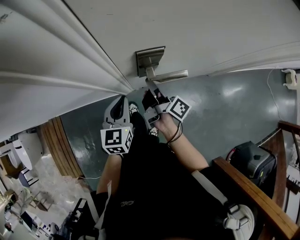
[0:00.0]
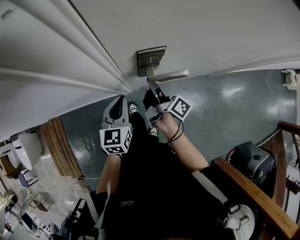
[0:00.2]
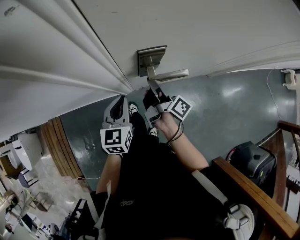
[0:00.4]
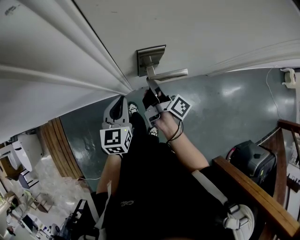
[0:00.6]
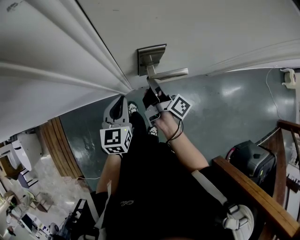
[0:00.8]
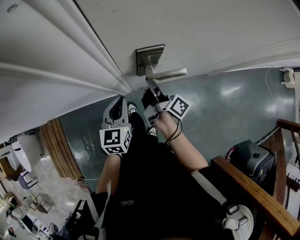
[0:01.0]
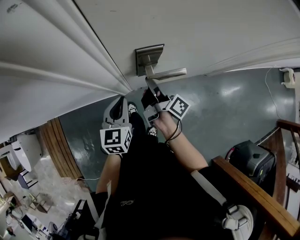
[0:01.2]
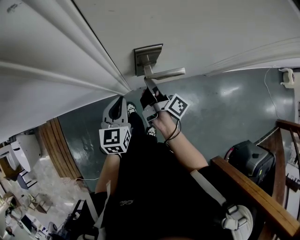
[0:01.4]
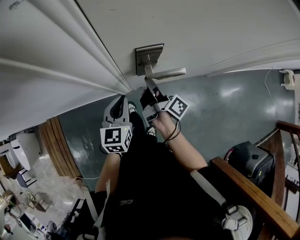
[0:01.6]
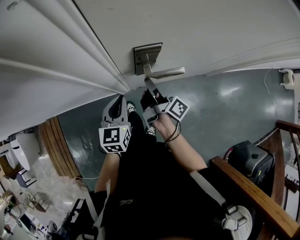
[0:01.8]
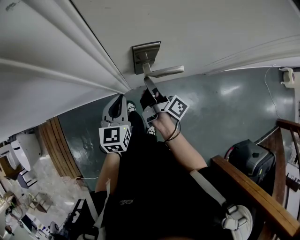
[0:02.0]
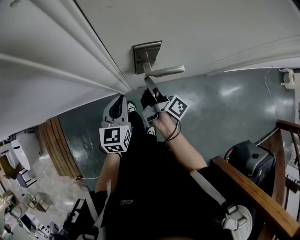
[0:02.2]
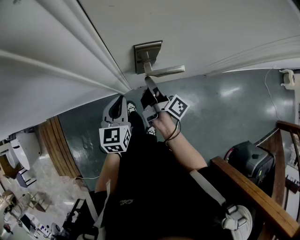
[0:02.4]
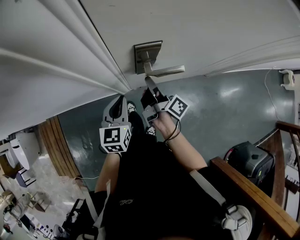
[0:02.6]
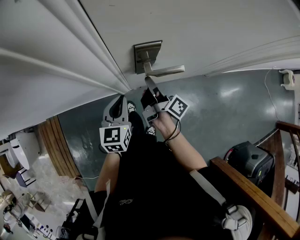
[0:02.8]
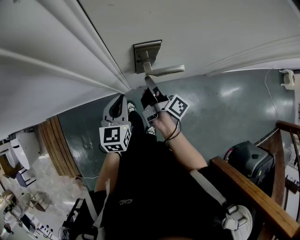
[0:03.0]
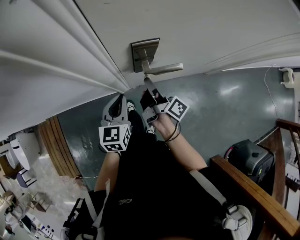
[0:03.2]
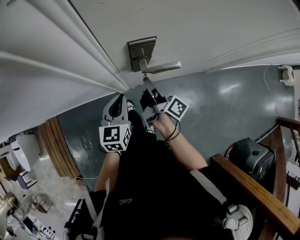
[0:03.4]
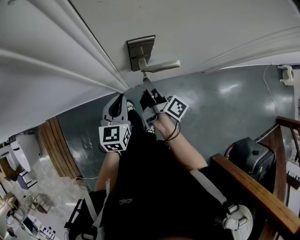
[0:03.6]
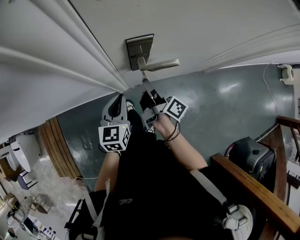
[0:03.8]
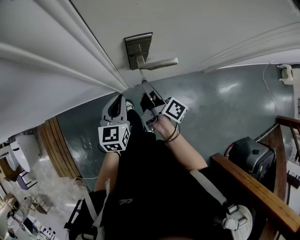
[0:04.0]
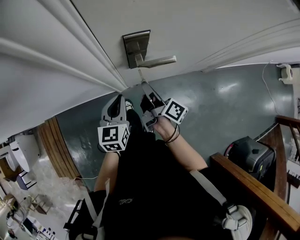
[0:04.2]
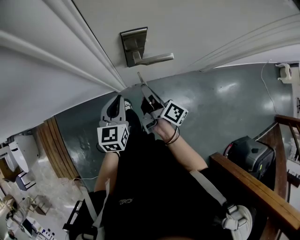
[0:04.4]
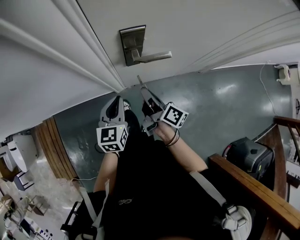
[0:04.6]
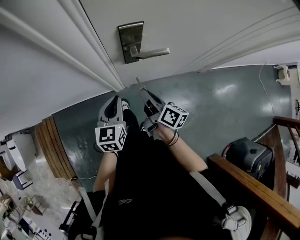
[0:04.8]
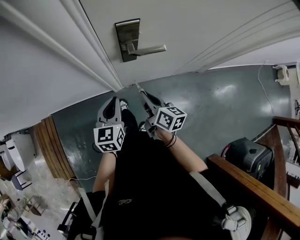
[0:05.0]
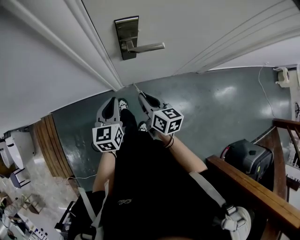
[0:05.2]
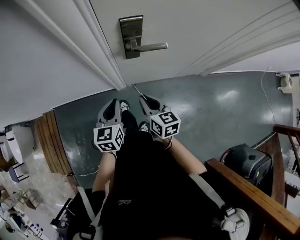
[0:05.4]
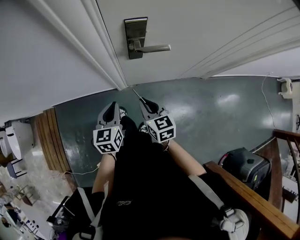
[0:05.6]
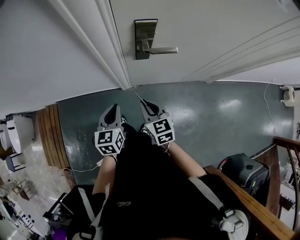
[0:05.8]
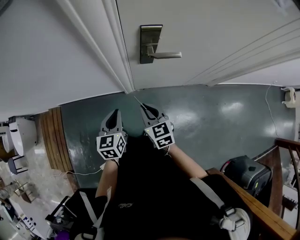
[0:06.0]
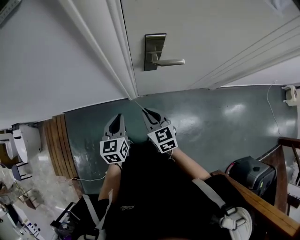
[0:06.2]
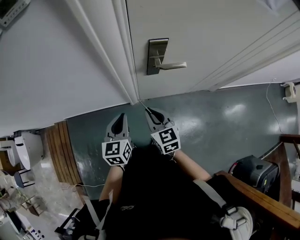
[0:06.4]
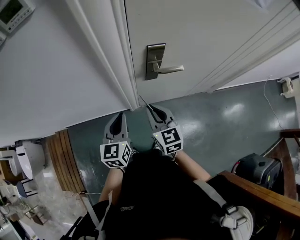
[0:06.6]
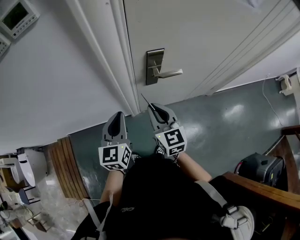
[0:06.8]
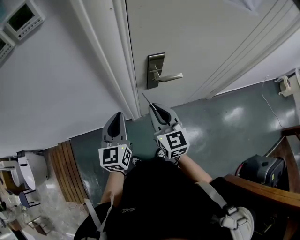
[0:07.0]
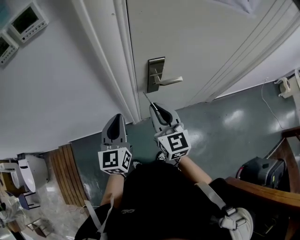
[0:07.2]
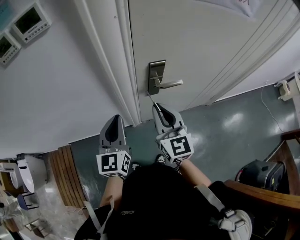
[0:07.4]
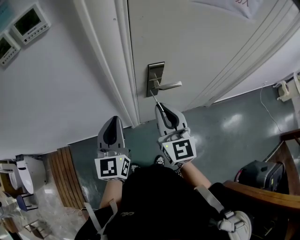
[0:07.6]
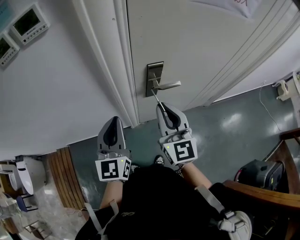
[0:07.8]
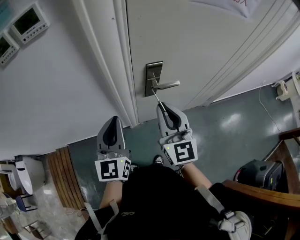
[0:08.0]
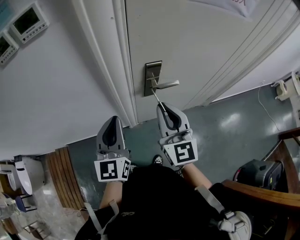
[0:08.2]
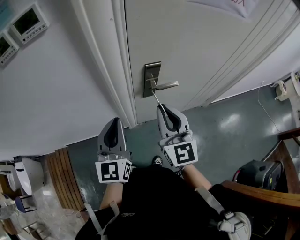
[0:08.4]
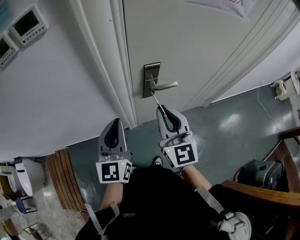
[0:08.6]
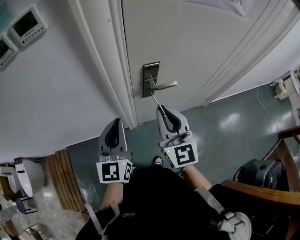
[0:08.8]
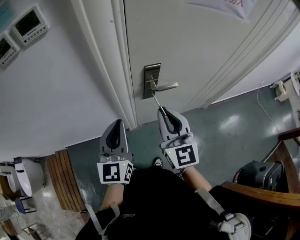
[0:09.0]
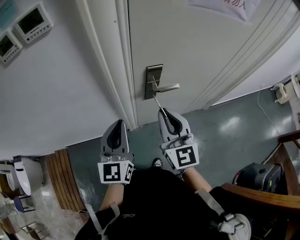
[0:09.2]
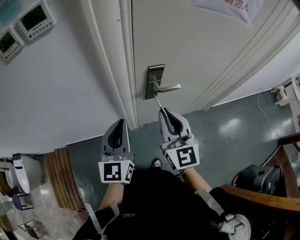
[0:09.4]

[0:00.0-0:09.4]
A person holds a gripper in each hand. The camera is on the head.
0.0 to 1.6 s: Both grippers stay about where they are.
1.6 to 3.2 s: There are only small adjustments of the grippers.
3.2 to 4.8 s: The right gripper is displaced backward by about 10 cm, and swivels roughly 30 degrees, while the left gripper travels backward by some 5 cm.
4.8 to 6.2 s: Both grippers move to the left and backward, some 10 cm. The right gripper twists about 60 degrees counterclockwise, seen from behind.
6.2 to 7.8 s: The two grippers go about 25 cm upward. The right gripper changes its angle by roughly 40 degrees, while the left gripper changes its angle by some 30 degrees.
7.8 to 9.4 s: The grippers stay close to where they were, moving slightly.

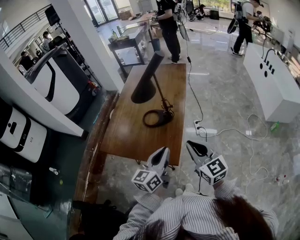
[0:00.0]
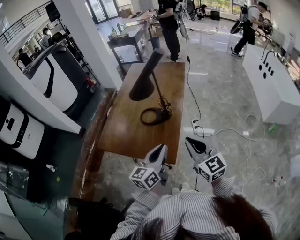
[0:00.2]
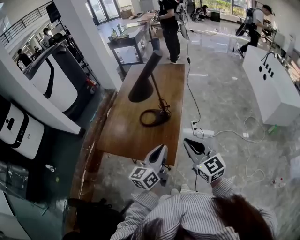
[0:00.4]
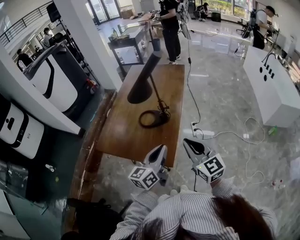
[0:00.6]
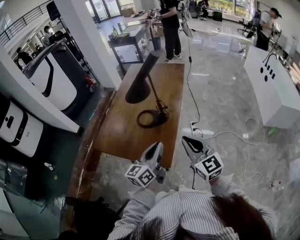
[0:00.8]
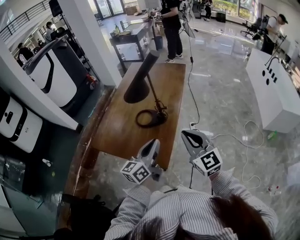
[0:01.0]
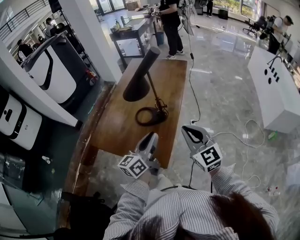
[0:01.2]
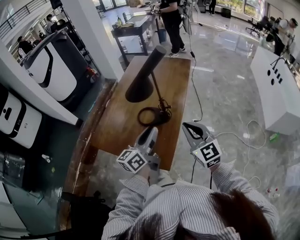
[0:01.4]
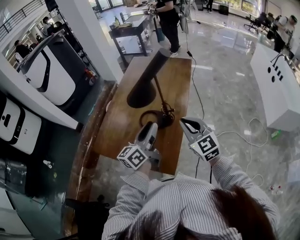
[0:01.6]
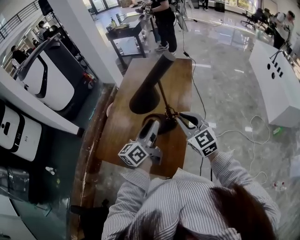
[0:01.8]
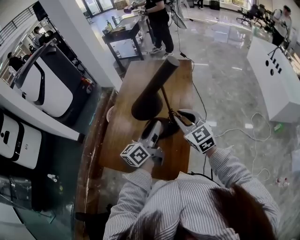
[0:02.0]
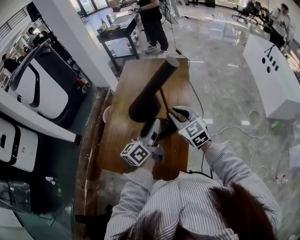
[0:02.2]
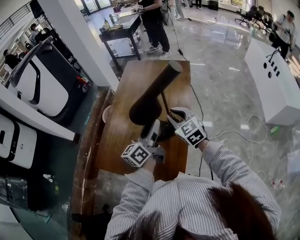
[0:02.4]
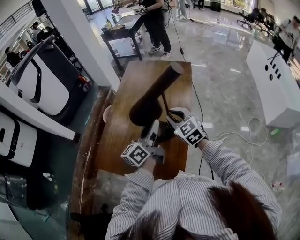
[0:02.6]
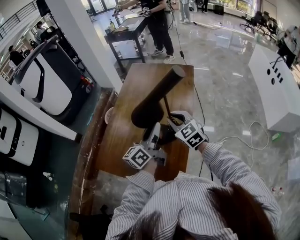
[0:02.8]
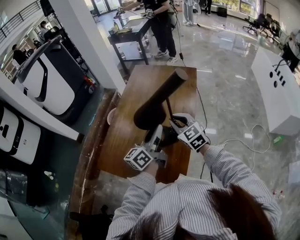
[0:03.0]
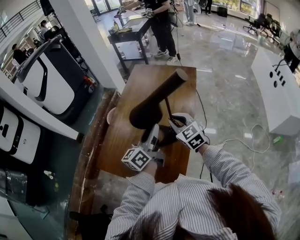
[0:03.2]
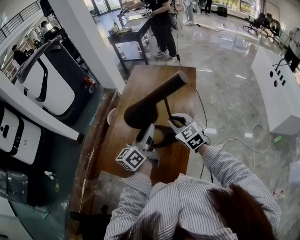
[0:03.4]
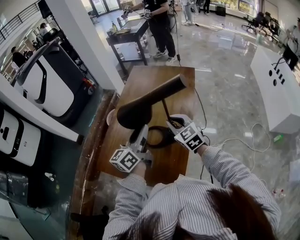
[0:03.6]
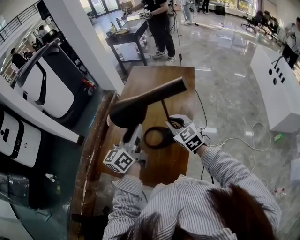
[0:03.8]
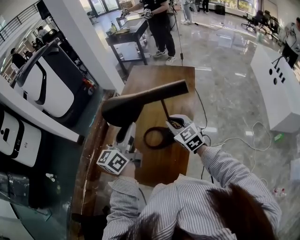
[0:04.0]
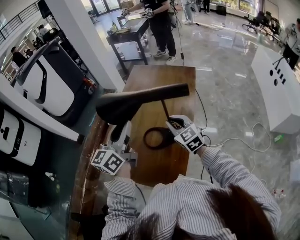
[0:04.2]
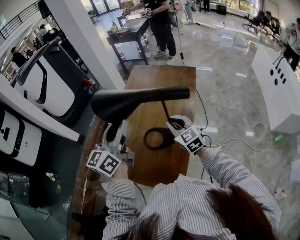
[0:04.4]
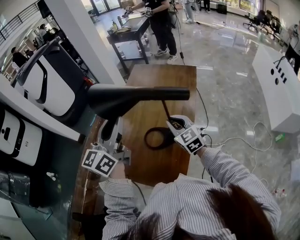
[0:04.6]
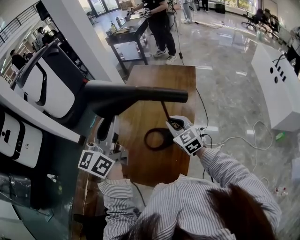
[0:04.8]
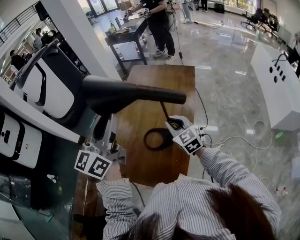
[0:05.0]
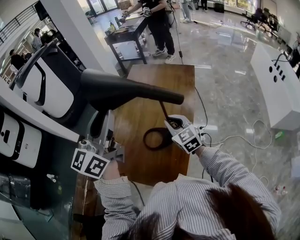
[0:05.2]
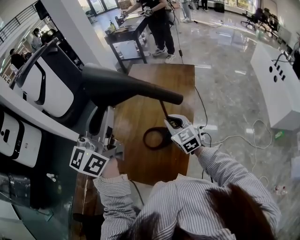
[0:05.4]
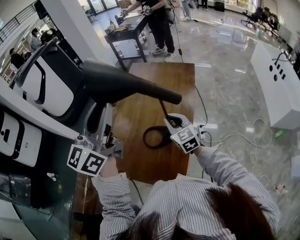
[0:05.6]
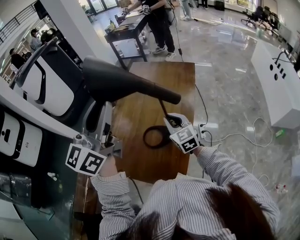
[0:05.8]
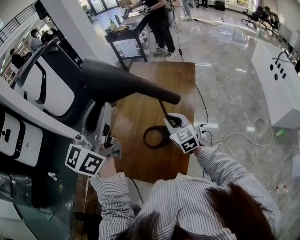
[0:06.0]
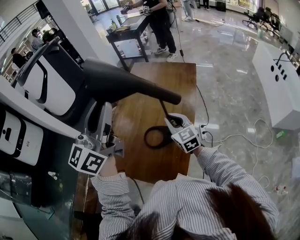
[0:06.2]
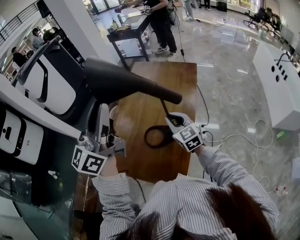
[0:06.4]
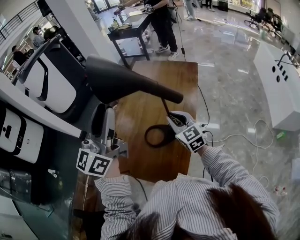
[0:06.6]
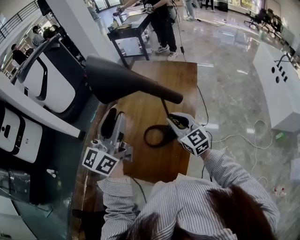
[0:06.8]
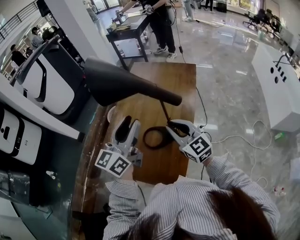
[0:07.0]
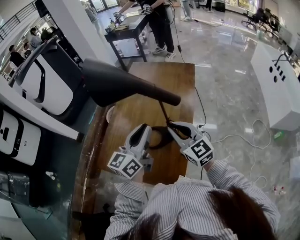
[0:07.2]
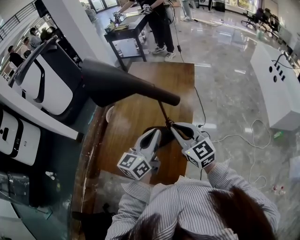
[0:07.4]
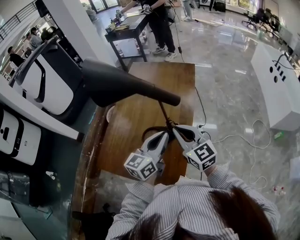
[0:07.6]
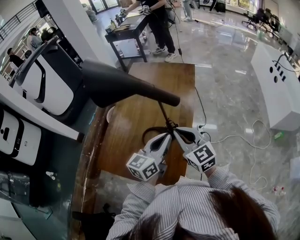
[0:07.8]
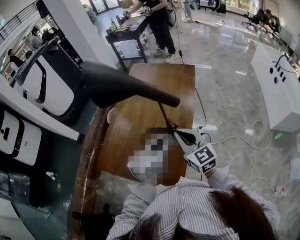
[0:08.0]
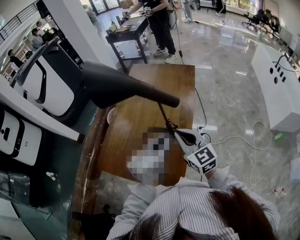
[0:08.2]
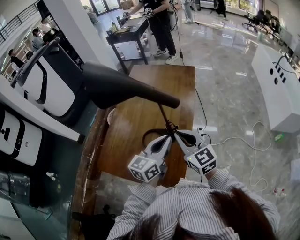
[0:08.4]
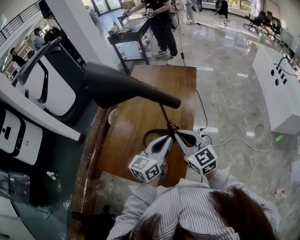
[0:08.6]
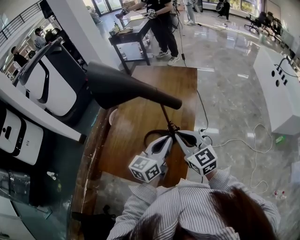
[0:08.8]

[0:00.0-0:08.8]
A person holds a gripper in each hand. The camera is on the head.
0.0 to 1.4 s: The grippers both shift forward by about 15 cm.
1.4 to 3.0 s: The right gripper is displaced forward and to the left by approximately 20 cm. The left gripper goes some 15 cm forward, and opens, then closes once more.
3.0 to 4.4 s: The left gripper moves upward and to the left, roughly 15 cm, and changes its angle by roughly 30 degrees.
4.4 to 5.8 s: The left gripper heads upward, covering some 15 cm.
5.8 to 7.4 s: The left gripper shifts about 25 cm downward and to the right, and changes its angle by about 20 degrees; the right gripper travels backward and upward by about 10 cm.
7.4 to 8.8 s: The left gripper moves about 5 cm.

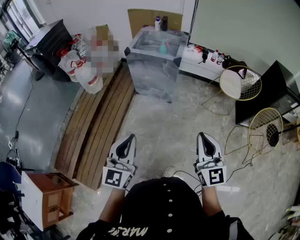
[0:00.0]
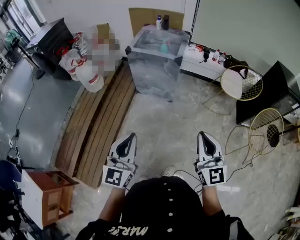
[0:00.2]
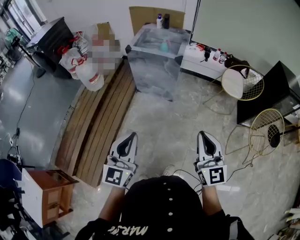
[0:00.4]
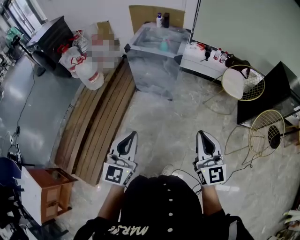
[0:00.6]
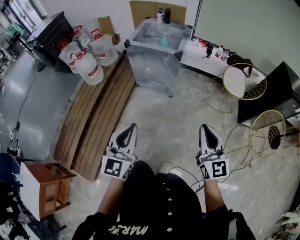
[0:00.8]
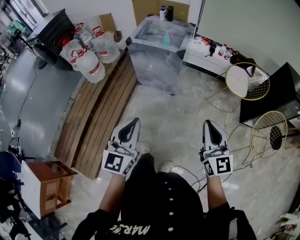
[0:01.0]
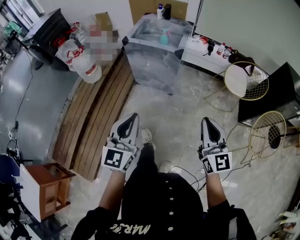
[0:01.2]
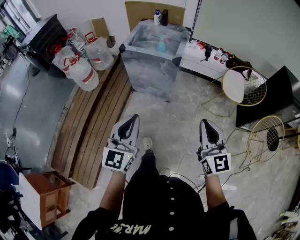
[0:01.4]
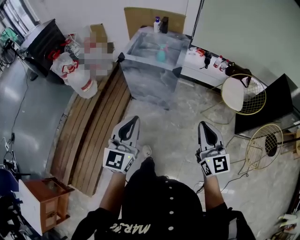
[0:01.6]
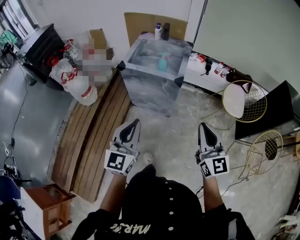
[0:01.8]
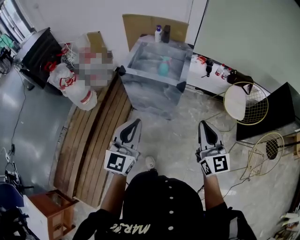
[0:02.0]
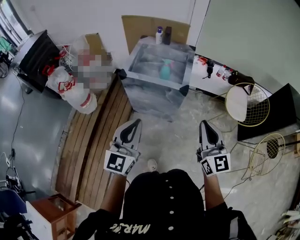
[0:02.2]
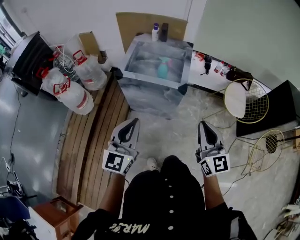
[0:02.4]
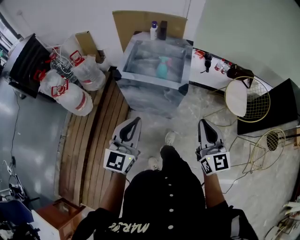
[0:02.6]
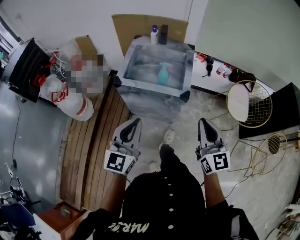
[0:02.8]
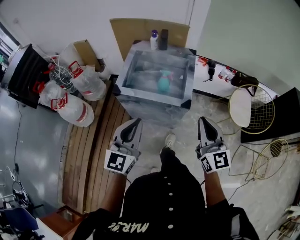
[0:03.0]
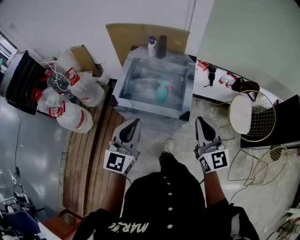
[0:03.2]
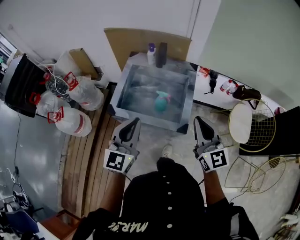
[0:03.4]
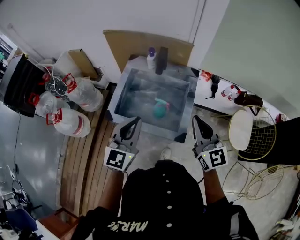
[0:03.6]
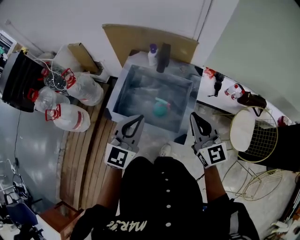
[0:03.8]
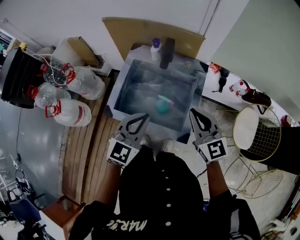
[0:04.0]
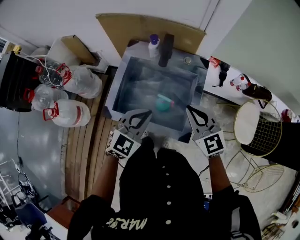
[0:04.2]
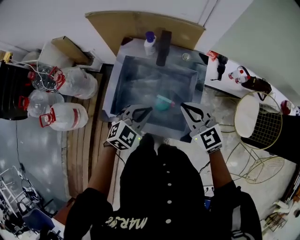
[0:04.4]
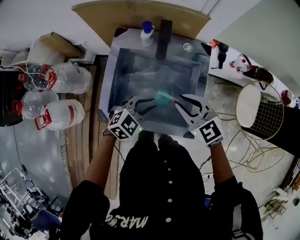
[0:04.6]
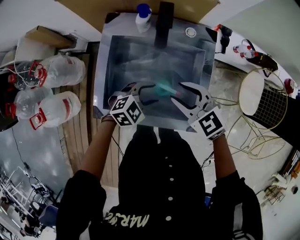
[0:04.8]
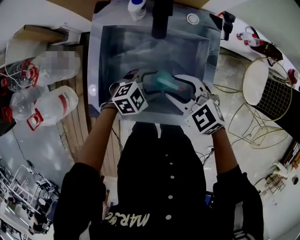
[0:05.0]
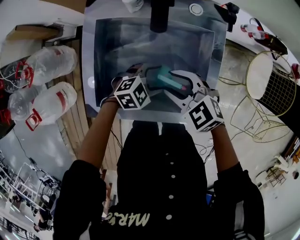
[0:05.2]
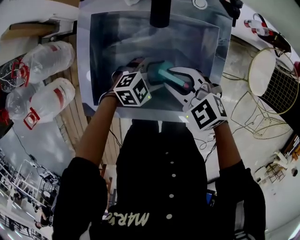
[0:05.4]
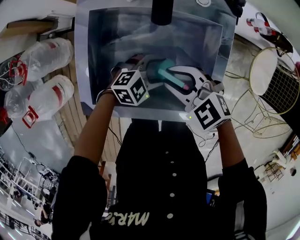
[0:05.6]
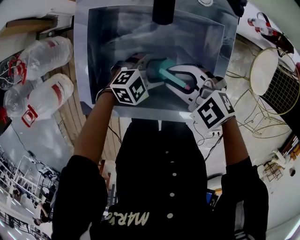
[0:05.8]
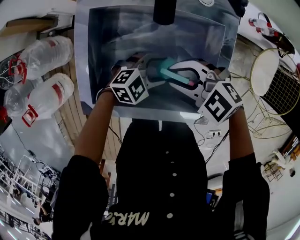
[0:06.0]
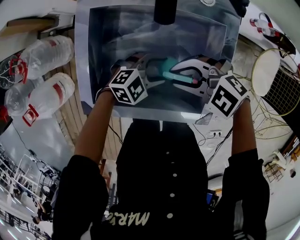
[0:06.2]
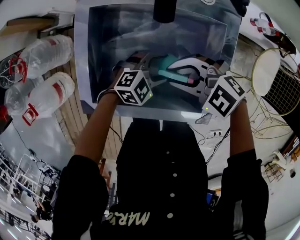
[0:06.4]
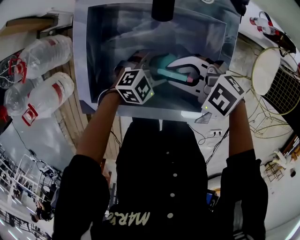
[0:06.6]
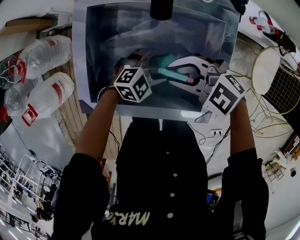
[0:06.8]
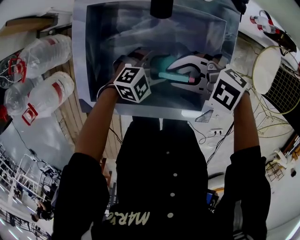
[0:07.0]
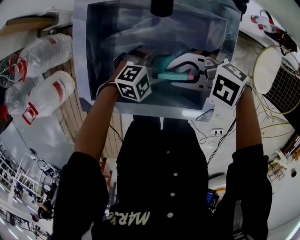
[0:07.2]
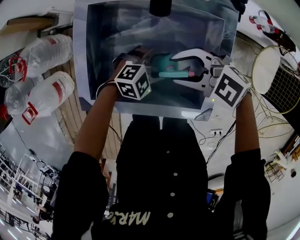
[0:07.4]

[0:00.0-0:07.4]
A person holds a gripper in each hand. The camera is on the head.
0.0 to 1.4 s: Both grippers travel together forward, approximately 15 cm.
1.4 to 3.0 s: Both grippers travel together forward, about 40 cm.
3.0 to 4.4 s: The right gripper heads forward, covering approximately 35 cm, and turns by approximately 40 degrees, while the left gripper heads forward and downward, covering some 35 cm, and tips its fingers downward by roughly 40 degrees.
4.4 to 6.0 s: The grippers both shift downward by approximately 20 cm. The right gripper changes its angle by approximately 40 degrees. Meanwhile the left gripper swivels approximately 30 degrees, and opens up.
6.0 to 7.4 s: The grippers move only a little.
